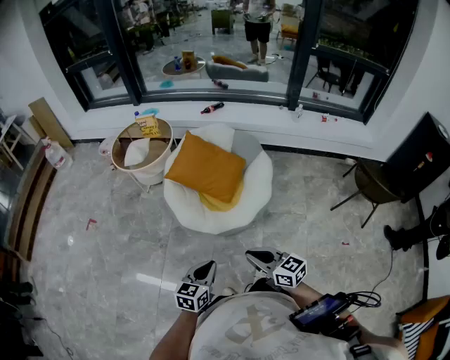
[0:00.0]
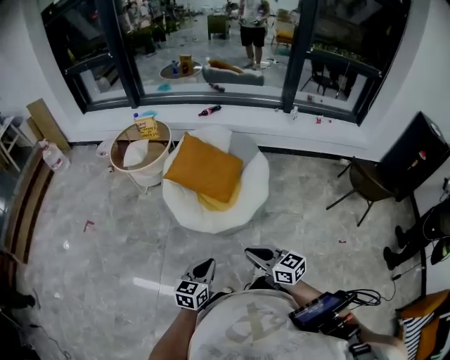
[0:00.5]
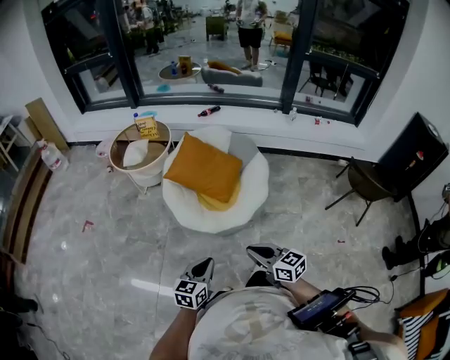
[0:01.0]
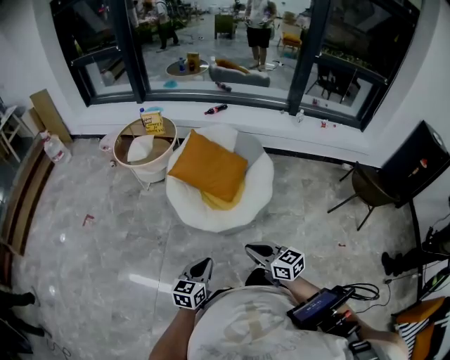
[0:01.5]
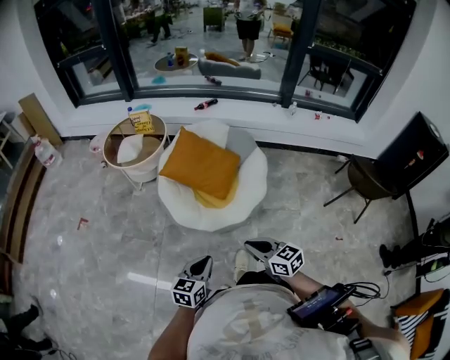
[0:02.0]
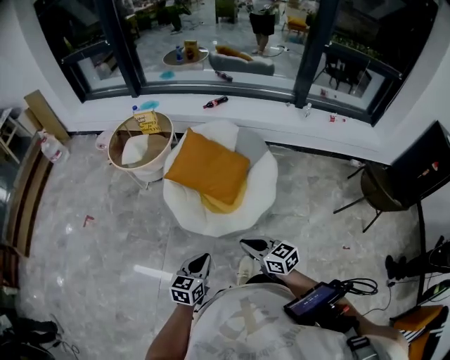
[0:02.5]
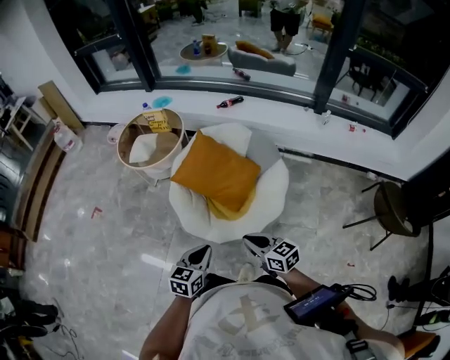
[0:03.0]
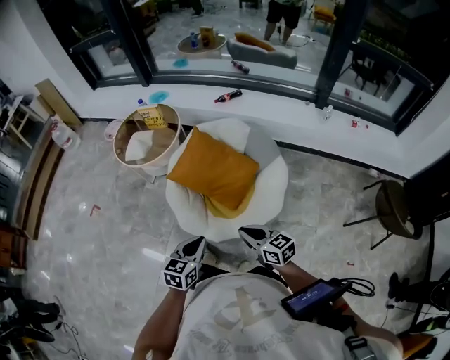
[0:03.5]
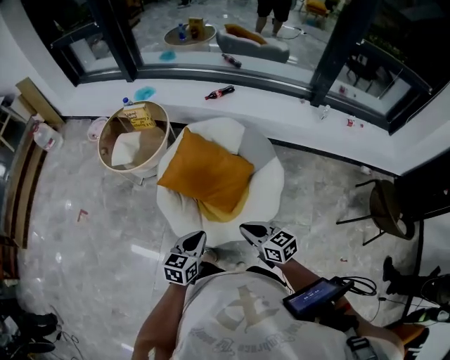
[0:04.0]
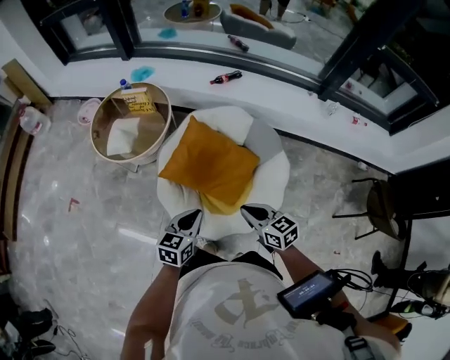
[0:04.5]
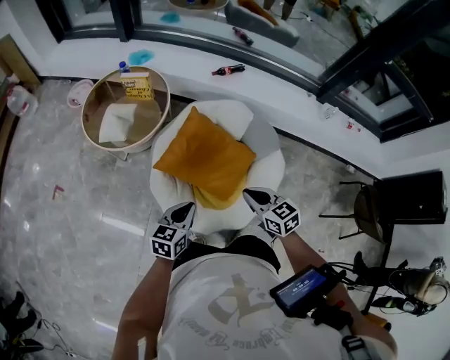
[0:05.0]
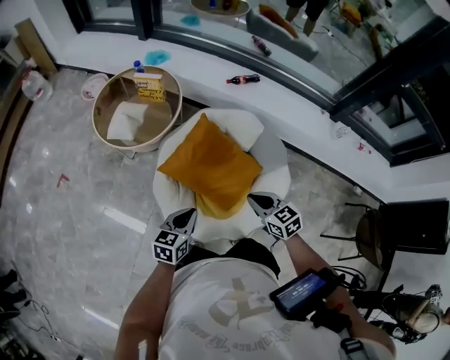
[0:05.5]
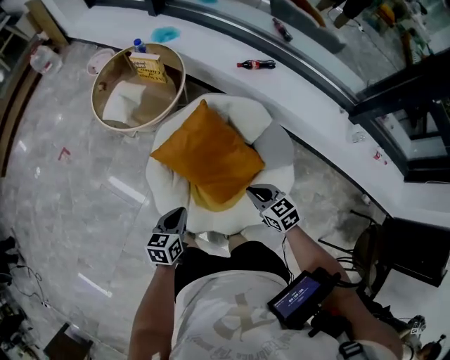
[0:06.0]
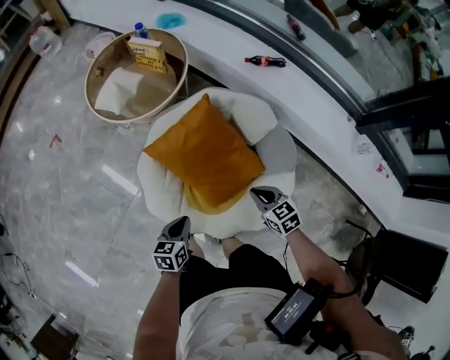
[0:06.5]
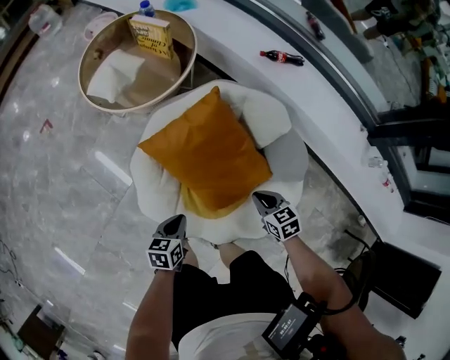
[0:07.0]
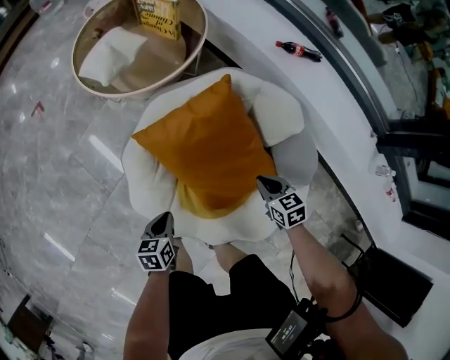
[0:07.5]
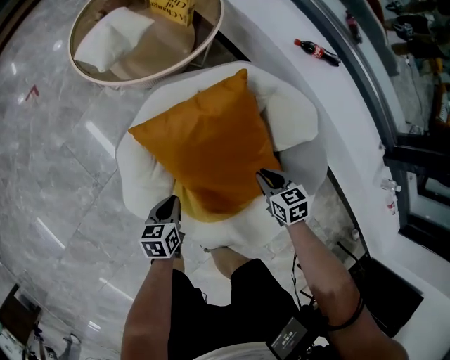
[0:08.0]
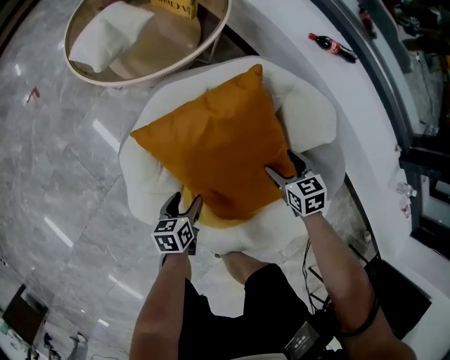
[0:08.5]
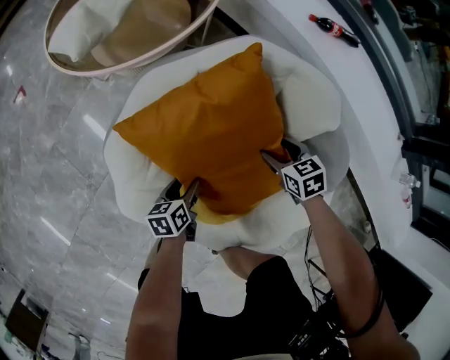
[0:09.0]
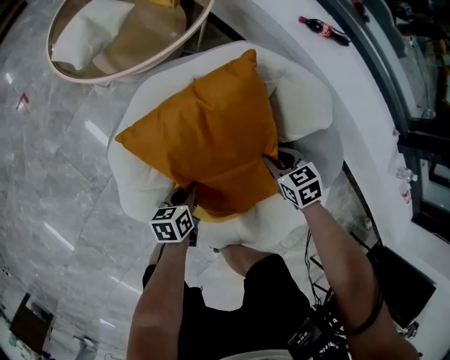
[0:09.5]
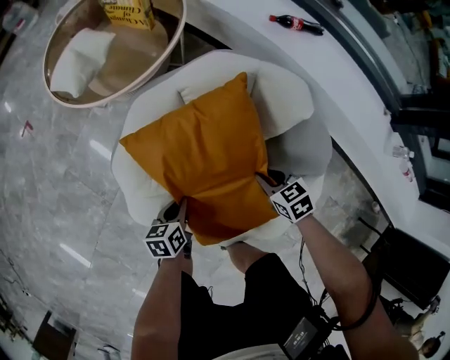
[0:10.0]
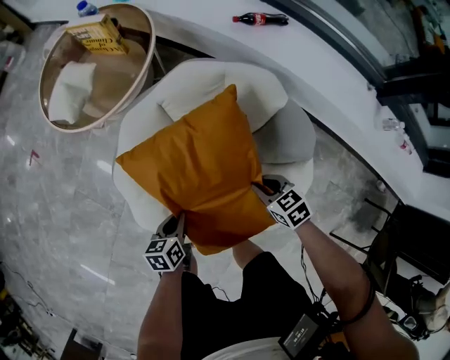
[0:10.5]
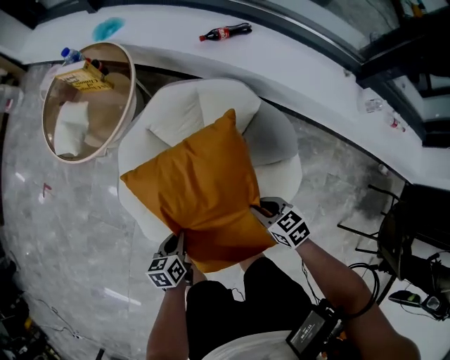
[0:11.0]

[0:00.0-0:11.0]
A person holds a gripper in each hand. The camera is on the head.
0:02.0 to 0:03.5: Both grippers move forward, approximately 20 cm.
0:03.5 to 0:05.5: Both grippers travel together forward, approximately 25 cm. The right gripper swivels some 20 degrees.
0:05.5 to 0:07.5: The left gripper moves downward, some 30 cm, and turns by roughly 40 degrees, while the right gripper heads downward and forward, covering some 30 cm.
0:07.5 to 0:09.0: The two grippers go about 20 cm downward and forward. The right gripper opens up; the left gripper opens up.
0:09.0 to 0:11.0: The left gripper heads upward and backward, covering roughly 25 cm, changes its angle by roughly 20 degrees, and closes. Meanwhile the right gripper heads backward and upward, covering some 25 cm, and closes.

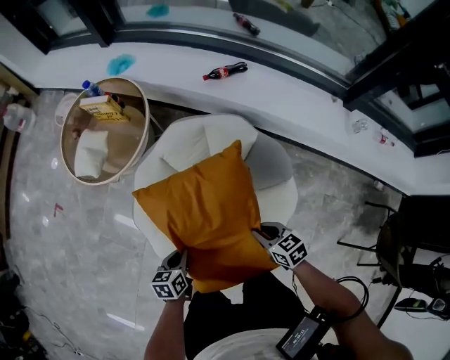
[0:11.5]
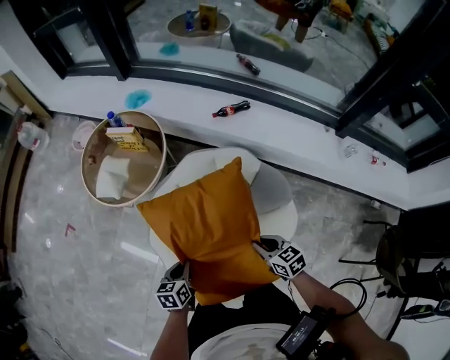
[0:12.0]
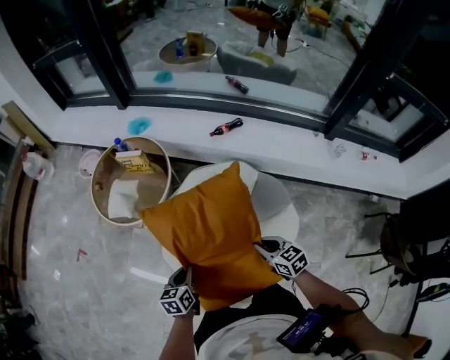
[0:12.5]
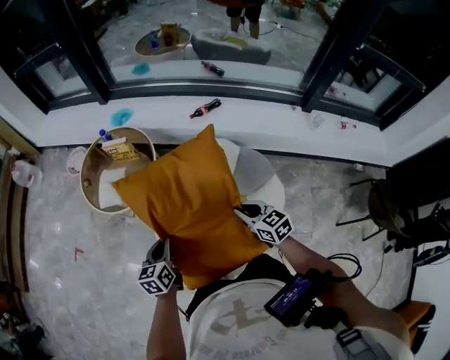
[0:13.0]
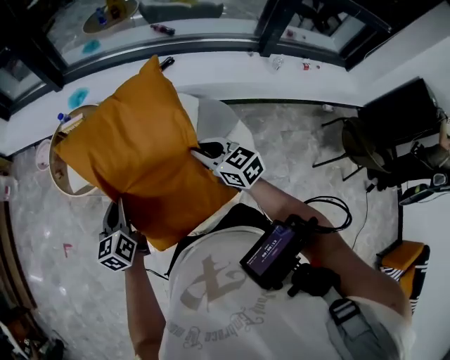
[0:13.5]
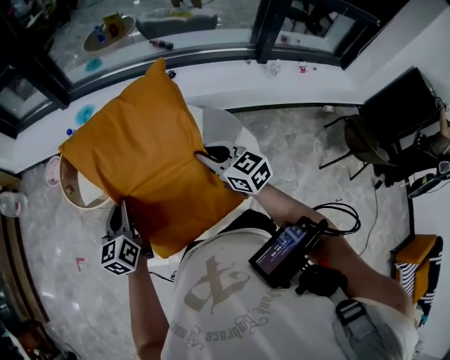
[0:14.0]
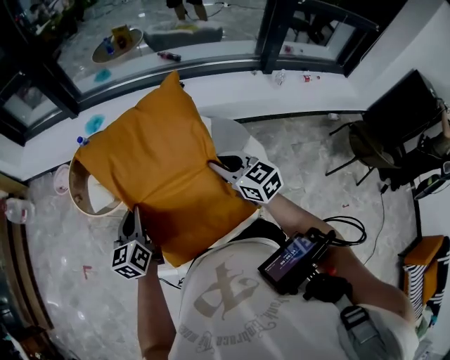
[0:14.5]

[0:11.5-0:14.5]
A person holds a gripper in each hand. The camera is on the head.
0:11.5 to 0:13.0: Both grippers travel together upward and to the left, approximately 25 cm. The left gripper swivels some 20 degrees, while the right gripper rotates about 20 degrees.
0:13.0 to 0:14.5: The two grippers go roughly 10 cm upward.

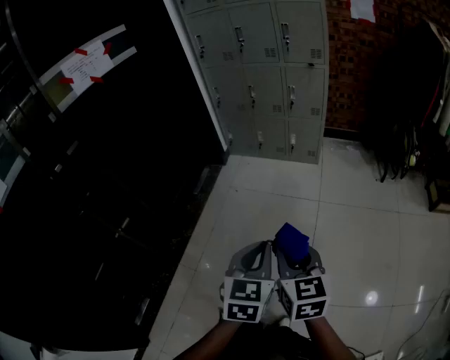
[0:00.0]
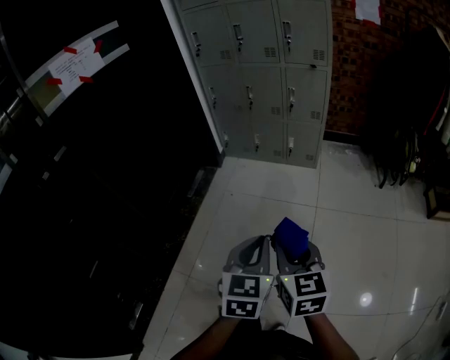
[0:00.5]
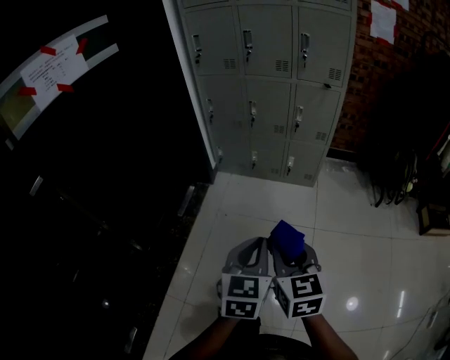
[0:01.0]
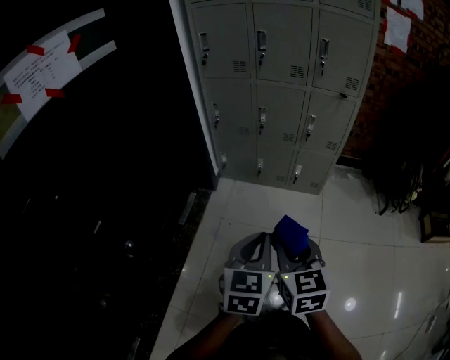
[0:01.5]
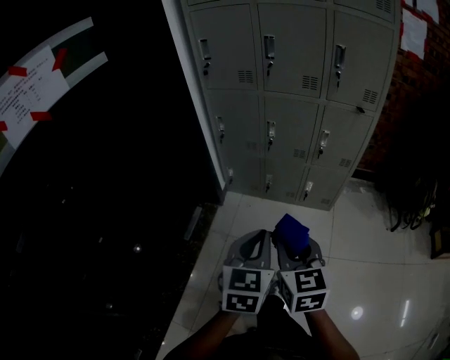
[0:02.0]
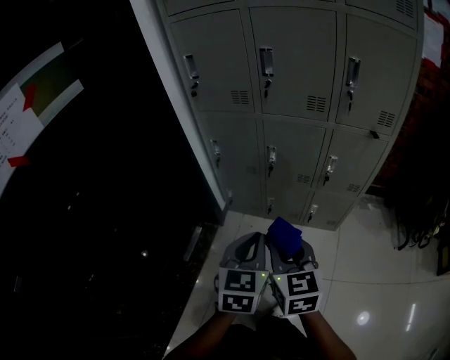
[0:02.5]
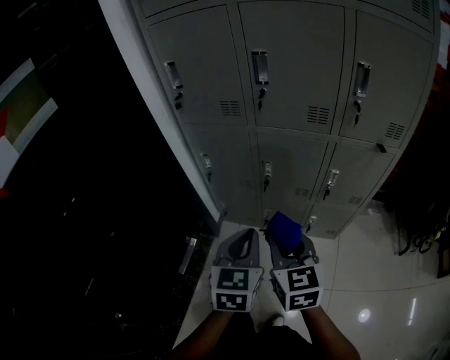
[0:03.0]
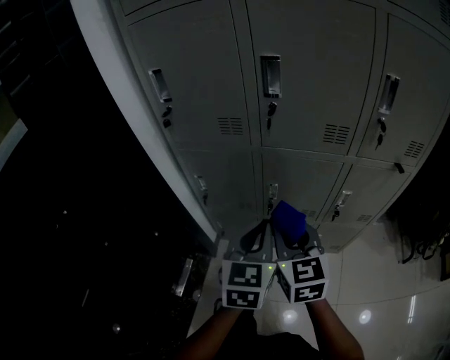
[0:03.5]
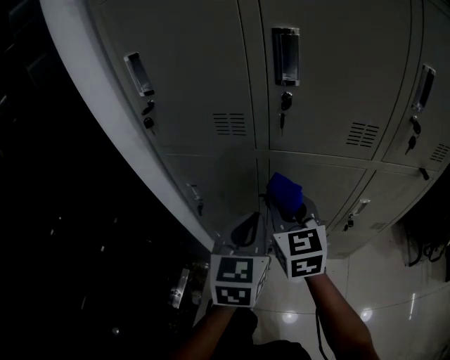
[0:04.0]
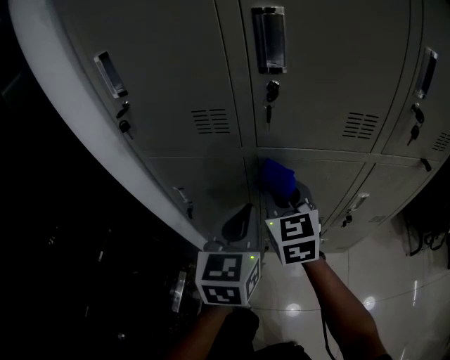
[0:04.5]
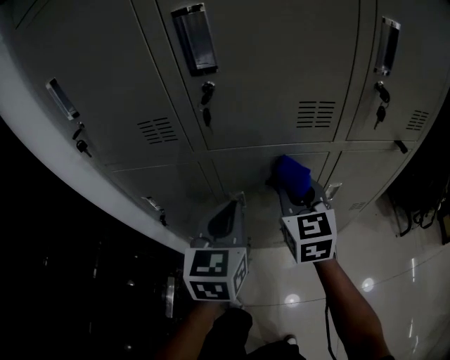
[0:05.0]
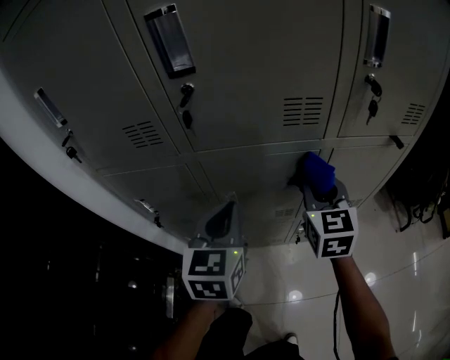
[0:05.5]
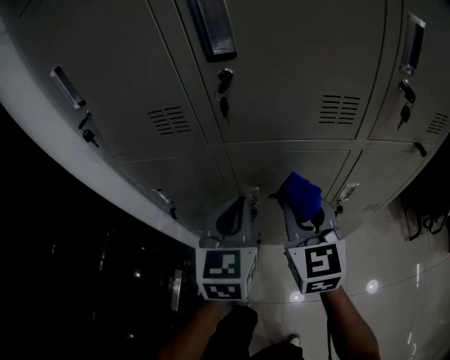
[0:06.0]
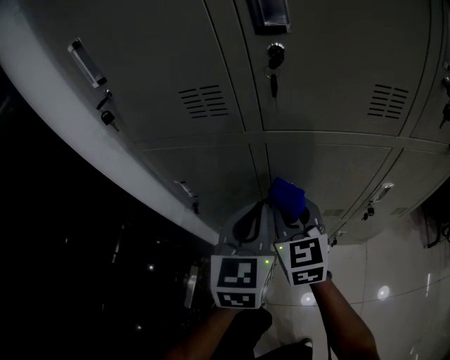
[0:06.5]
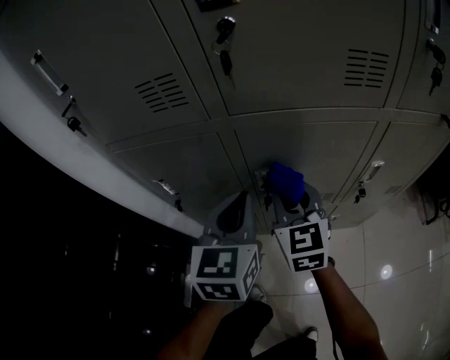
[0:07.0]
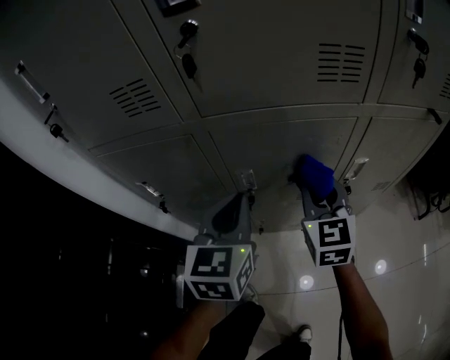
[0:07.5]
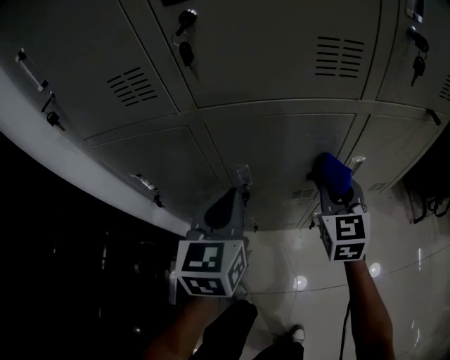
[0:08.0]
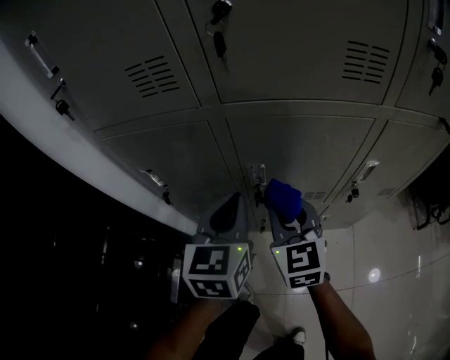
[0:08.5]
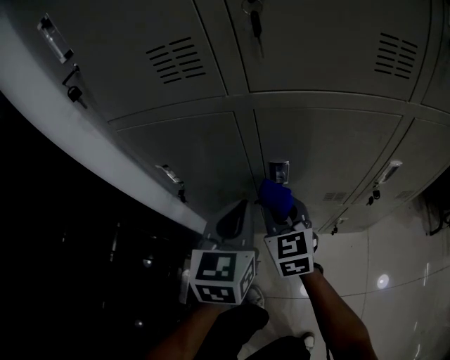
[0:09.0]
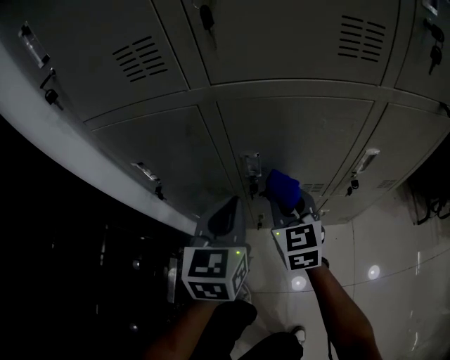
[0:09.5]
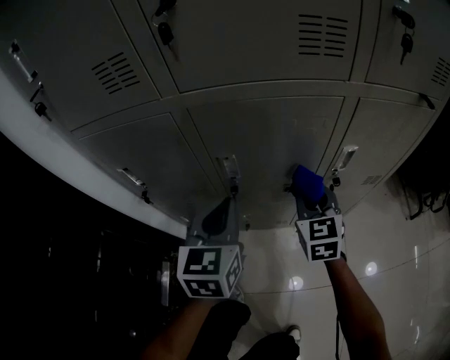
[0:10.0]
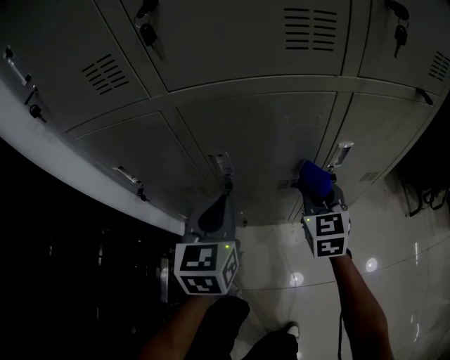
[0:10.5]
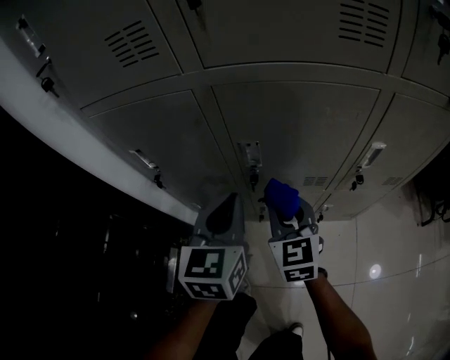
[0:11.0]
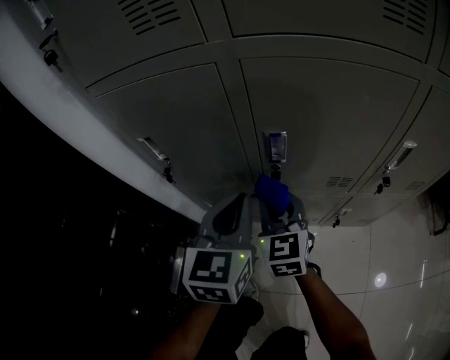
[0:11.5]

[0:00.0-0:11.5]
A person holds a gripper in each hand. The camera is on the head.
0:00.0 to 0:02.0: Both grippers are carried forward, roughly 50 cm.
0:02.0 to 0:04.0: The pair of grippers is taken forward, approximately 50 cm.
0:04.0 to 0:06.0: The right gripper heads to the right, covering roughly 10 cm; the left gripper moves forward, about 5 cm.
0:06.0 to 0:07.5: The left gripper travels downward by roughly 5 cm, while the right gripper moves downward and to the right, roughly 10 cm.
0:07.5 to 0:09.5: The left gripper moves downward, roughly 5 cm. Meanwhile the right gripper swings left and right, approximately 25 cm each way, with 2 reversals.
0:09.5 to 0:11.5: Both grippers move downward, approximately 5 cm. The right gripper goes to the right and returns, some 15 cm each way.

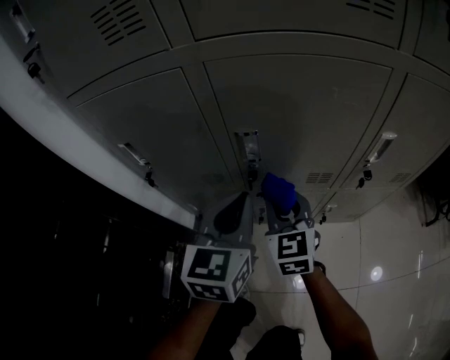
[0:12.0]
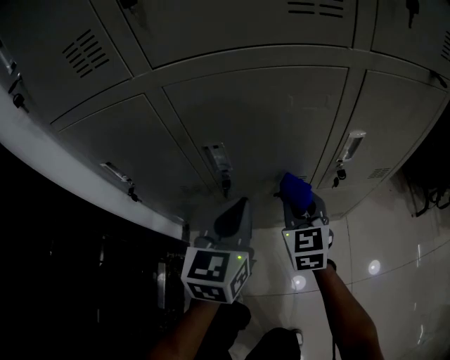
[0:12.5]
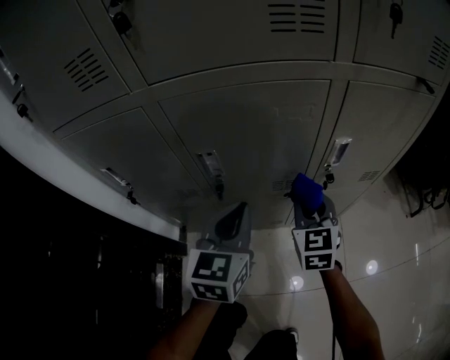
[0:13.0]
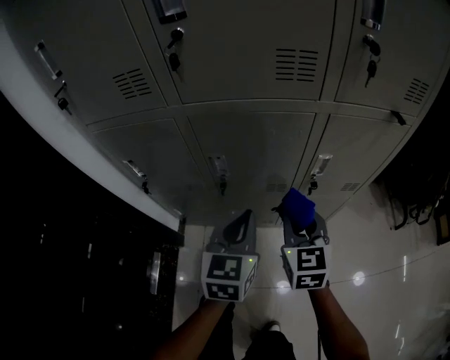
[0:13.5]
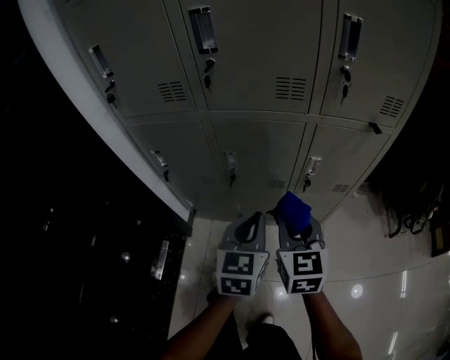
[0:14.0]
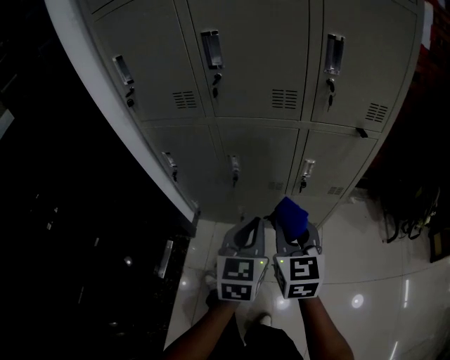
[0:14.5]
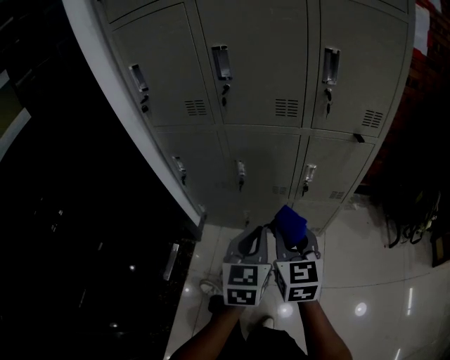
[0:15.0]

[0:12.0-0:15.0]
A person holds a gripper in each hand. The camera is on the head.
0:12.0 to 0:13.5: The left gripper goes approximately 15 cm to the right, upward and backward. The right gripper is displaced to the right, upward and backward by approximately 20 cm.
0:13.5 to 0:15.0: The grippers both shift backward and upward by approximately 20 cm.
